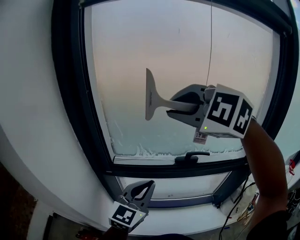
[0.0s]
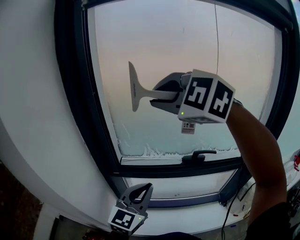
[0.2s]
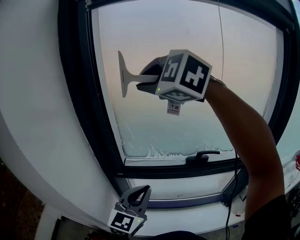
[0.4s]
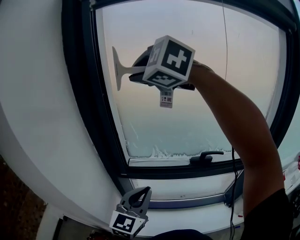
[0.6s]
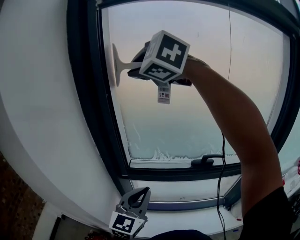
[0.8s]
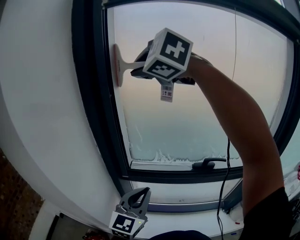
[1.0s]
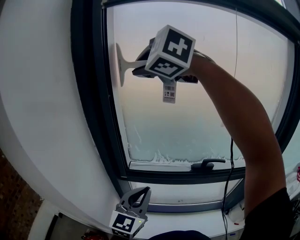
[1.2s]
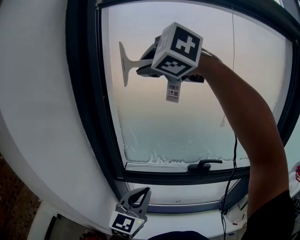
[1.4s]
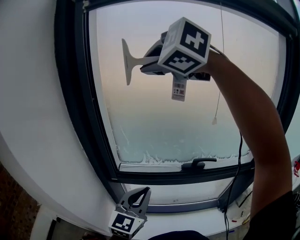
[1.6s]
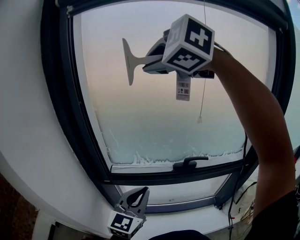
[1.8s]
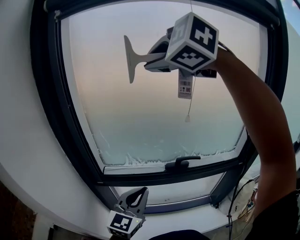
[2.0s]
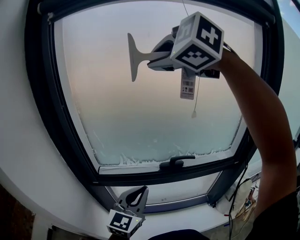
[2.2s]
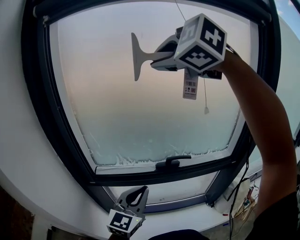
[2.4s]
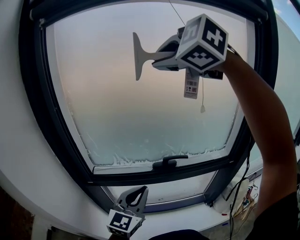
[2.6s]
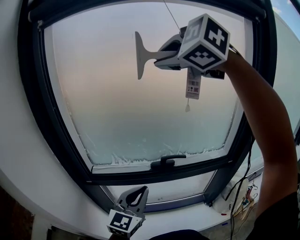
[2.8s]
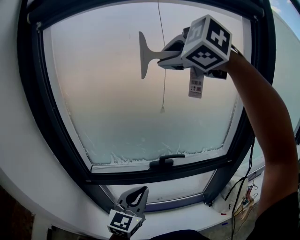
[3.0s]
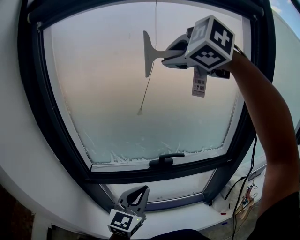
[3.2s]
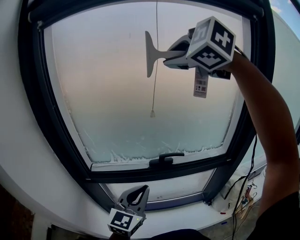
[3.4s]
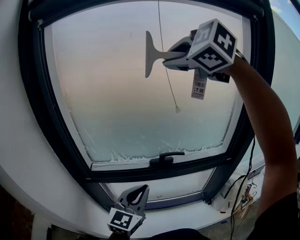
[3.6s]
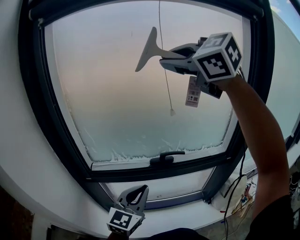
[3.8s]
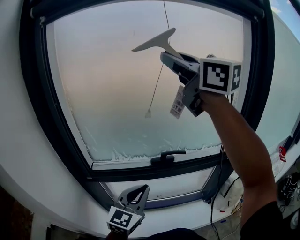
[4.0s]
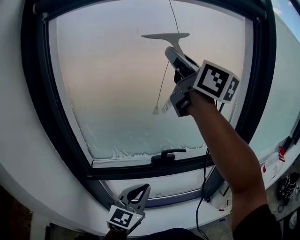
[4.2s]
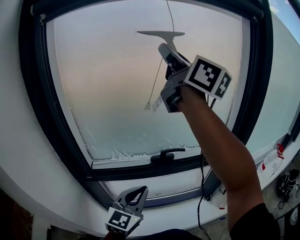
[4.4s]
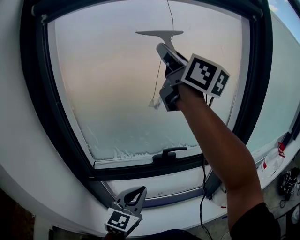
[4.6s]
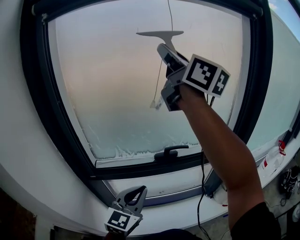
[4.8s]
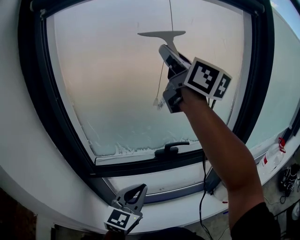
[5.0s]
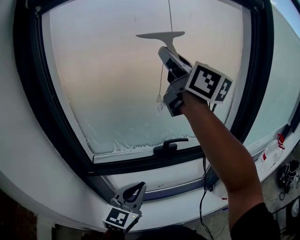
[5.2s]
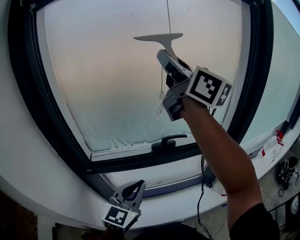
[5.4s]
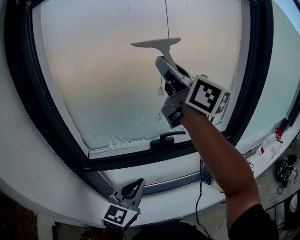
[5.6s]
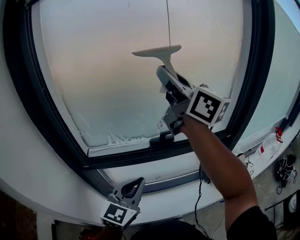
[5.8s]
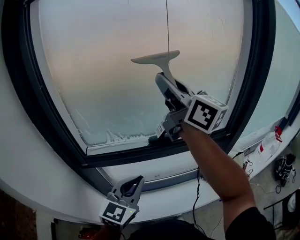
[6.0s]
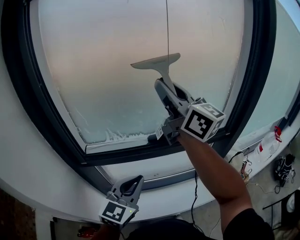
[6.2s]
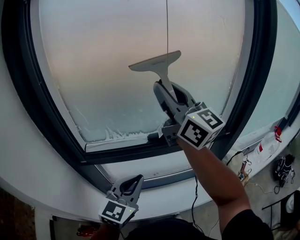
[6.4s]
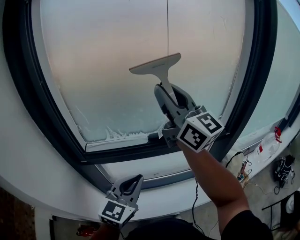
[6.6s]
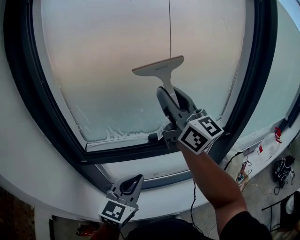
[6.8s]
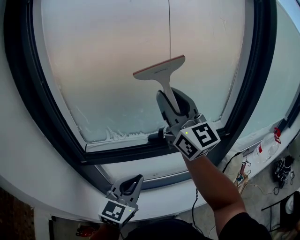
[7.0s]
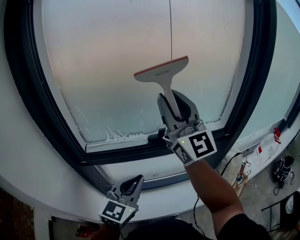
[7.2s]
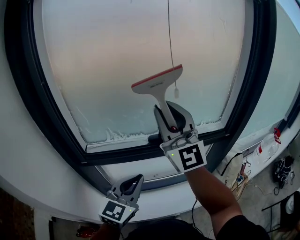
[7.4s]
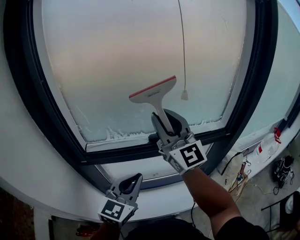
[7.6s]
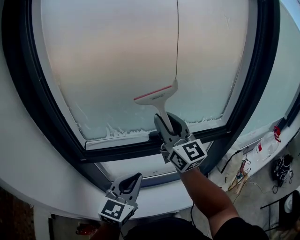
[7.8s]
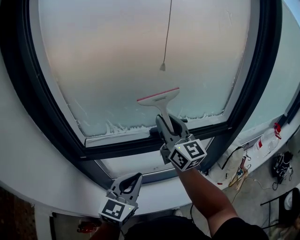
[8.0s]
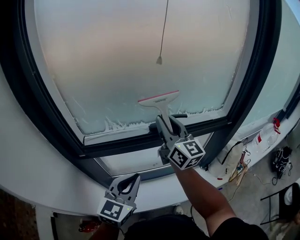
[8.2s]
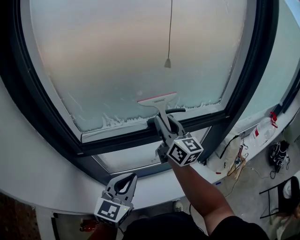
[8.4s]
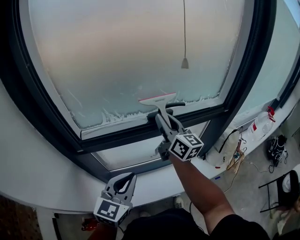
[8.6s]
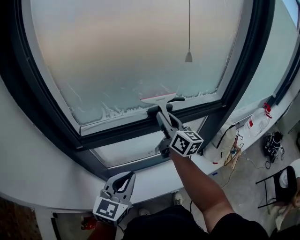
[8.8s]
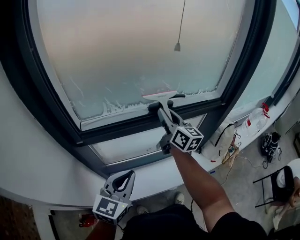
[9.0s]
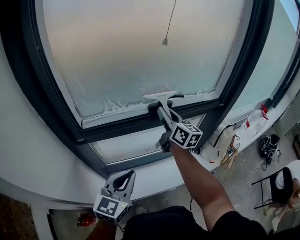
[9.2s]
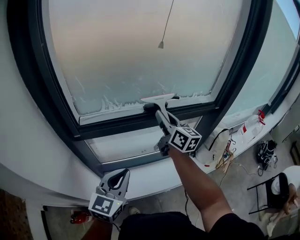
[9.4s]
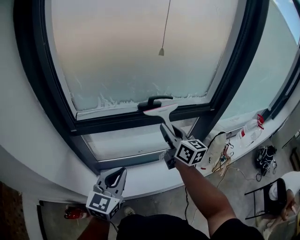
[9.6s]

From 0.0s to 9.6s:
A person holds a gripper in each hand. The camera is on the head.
From 0.0s to 1.6s: The right gripper heads upward, forward and to the left, covering some 15 cm.
From 1.6s to 3.2s: The left gripper moves to the right, about 15 cm. The right gripper goes approximately 25 cm to the right.
From 3.2s to 4.8s: The right gripper tips its fingers upward by about 60 degrees. The left gripper moves some 5 cm.
From 4.8s to 6.4s: The right gripper heads downward, covering approximately 20 cm.
From 6.4s to 8.0s: The right gripper shifts some 15 cm downward.
From 8.0s to 9.6s: The left gripper is displaced backward by some 10 cm, while the right gripper shifts roughly 15 cm downward, backward and to the right, and turns by approximately 20 degrees.

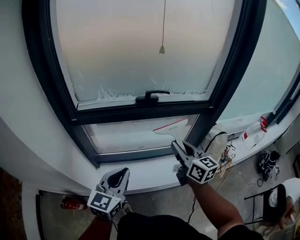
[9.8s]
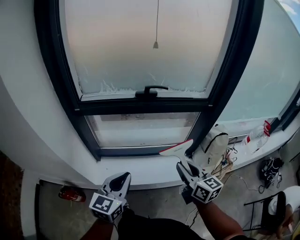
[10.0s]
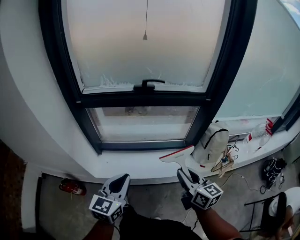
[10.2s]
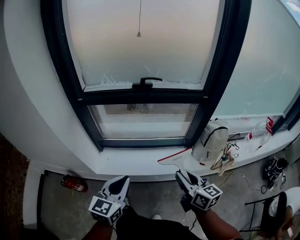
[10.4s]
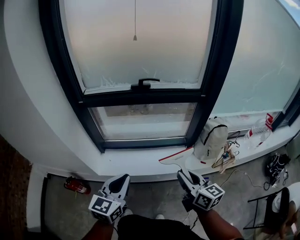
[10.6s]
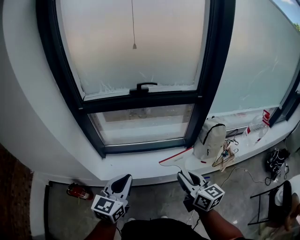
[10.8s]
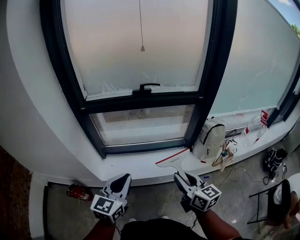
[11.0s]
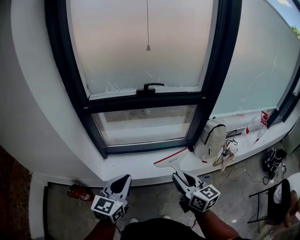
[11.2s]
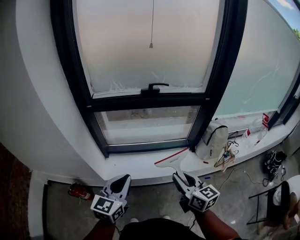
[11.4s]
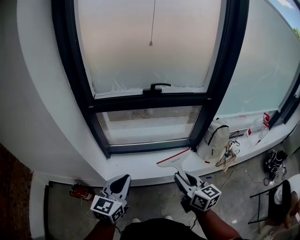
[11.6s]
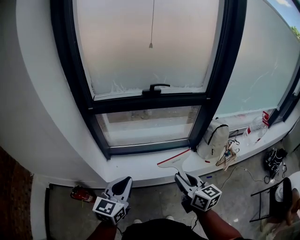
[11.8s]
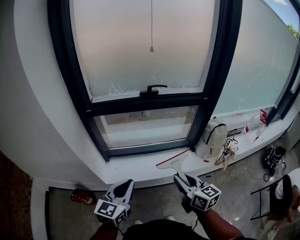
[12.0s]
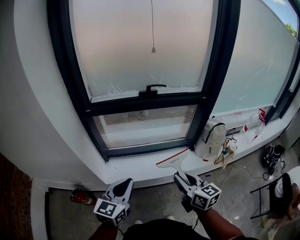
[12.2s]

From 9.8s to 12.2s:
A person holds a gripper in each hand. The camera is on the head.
From 9.8s to 11.0s: The two grippers go about 20 cm backward.
From 11.0s to 12.2s: The two grippers go approximately 5 cm to the left.

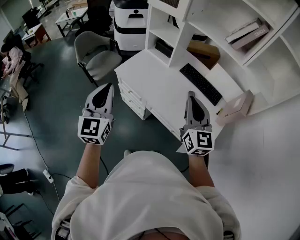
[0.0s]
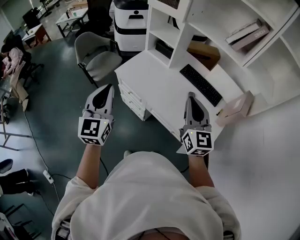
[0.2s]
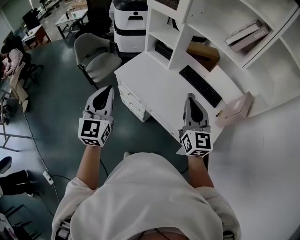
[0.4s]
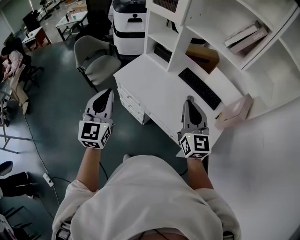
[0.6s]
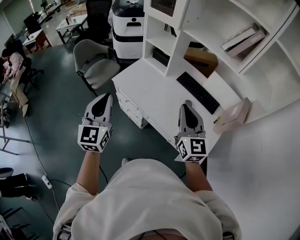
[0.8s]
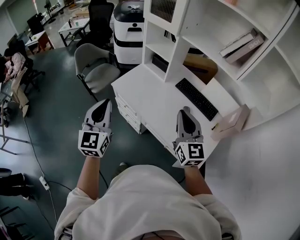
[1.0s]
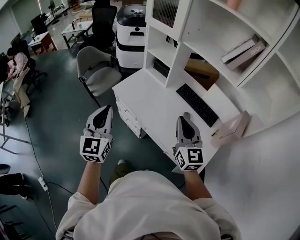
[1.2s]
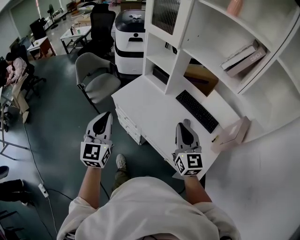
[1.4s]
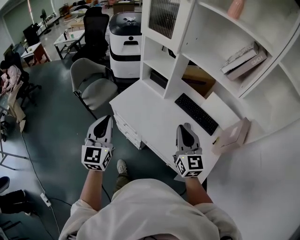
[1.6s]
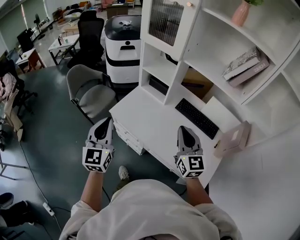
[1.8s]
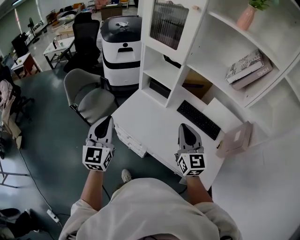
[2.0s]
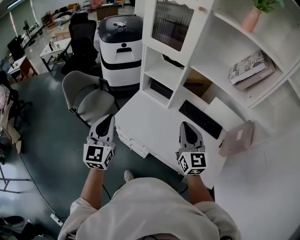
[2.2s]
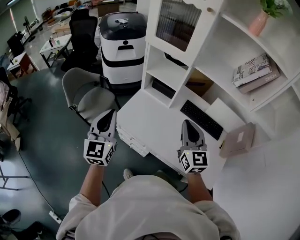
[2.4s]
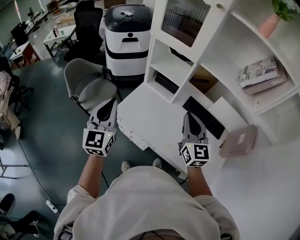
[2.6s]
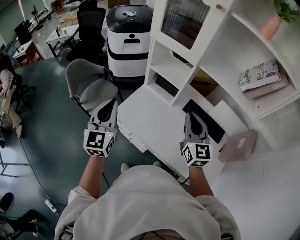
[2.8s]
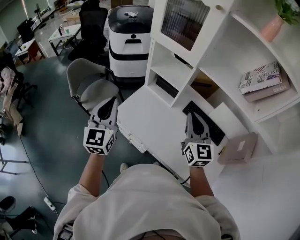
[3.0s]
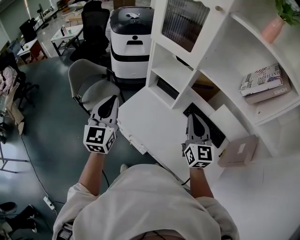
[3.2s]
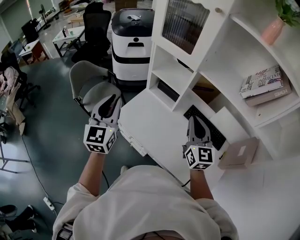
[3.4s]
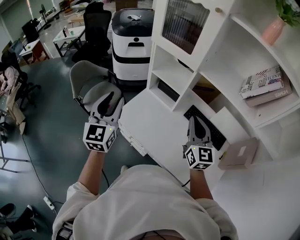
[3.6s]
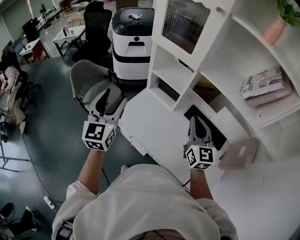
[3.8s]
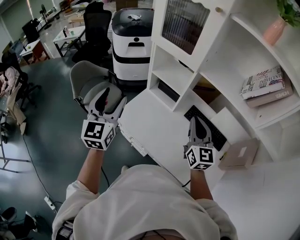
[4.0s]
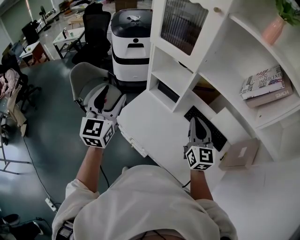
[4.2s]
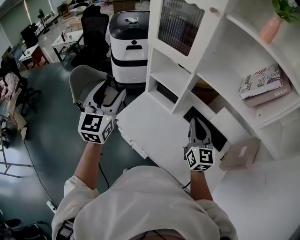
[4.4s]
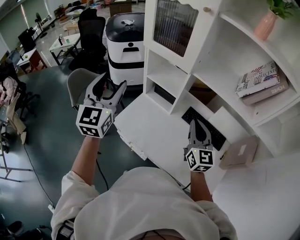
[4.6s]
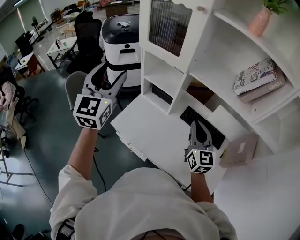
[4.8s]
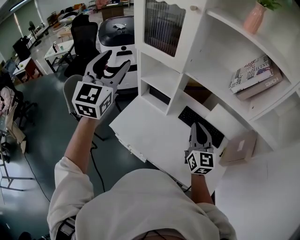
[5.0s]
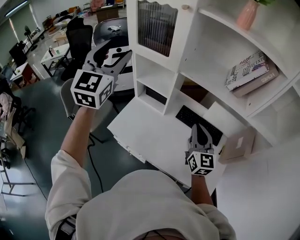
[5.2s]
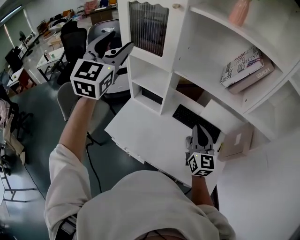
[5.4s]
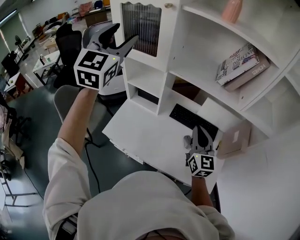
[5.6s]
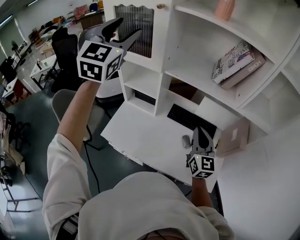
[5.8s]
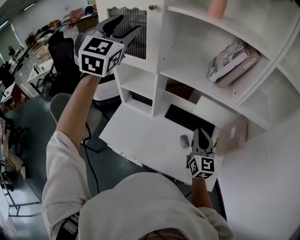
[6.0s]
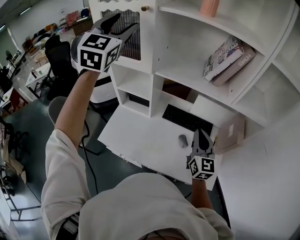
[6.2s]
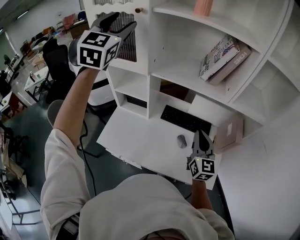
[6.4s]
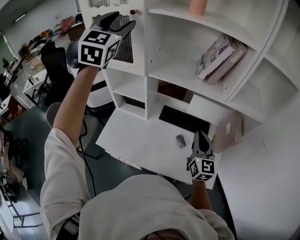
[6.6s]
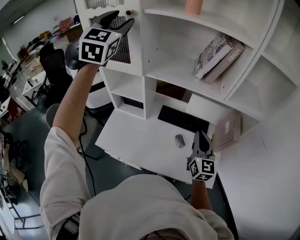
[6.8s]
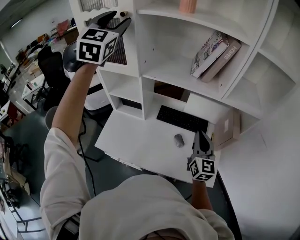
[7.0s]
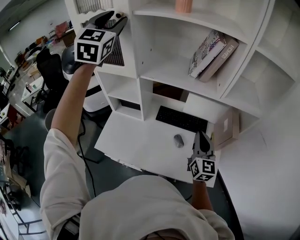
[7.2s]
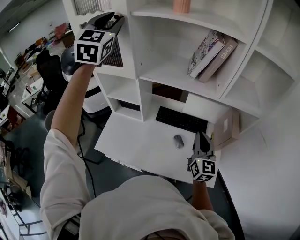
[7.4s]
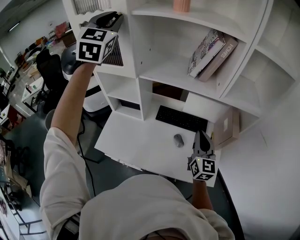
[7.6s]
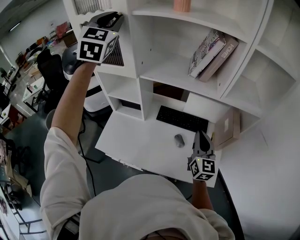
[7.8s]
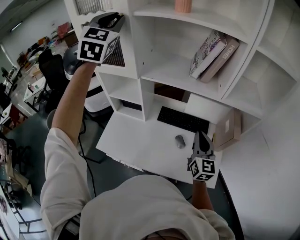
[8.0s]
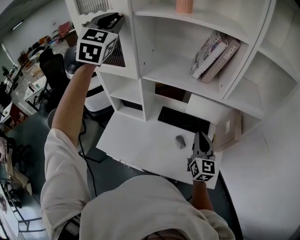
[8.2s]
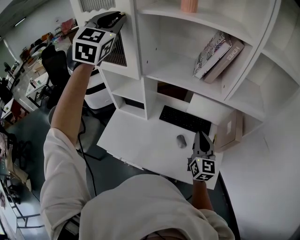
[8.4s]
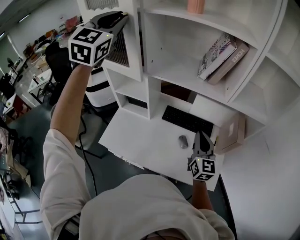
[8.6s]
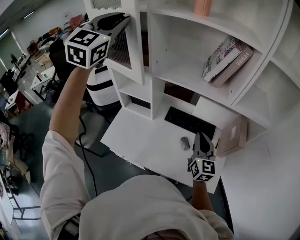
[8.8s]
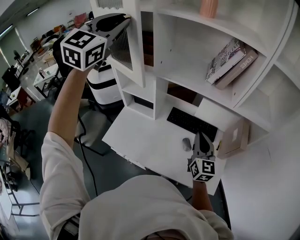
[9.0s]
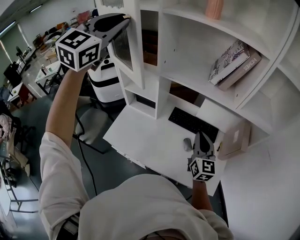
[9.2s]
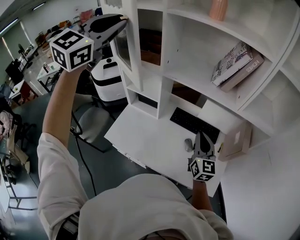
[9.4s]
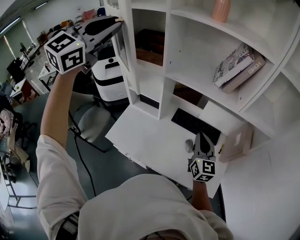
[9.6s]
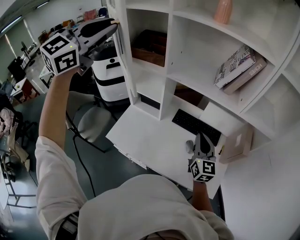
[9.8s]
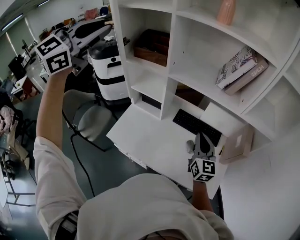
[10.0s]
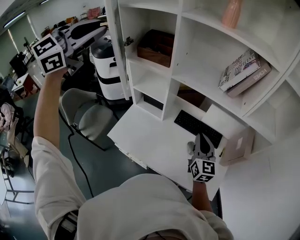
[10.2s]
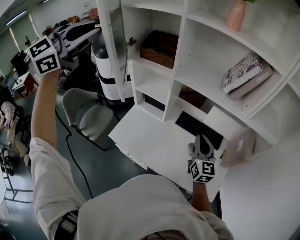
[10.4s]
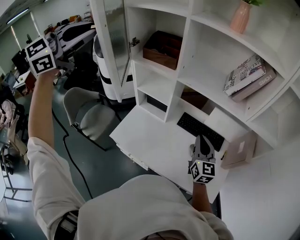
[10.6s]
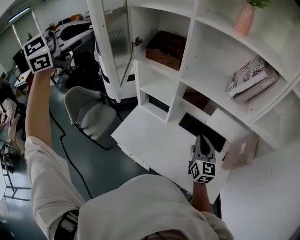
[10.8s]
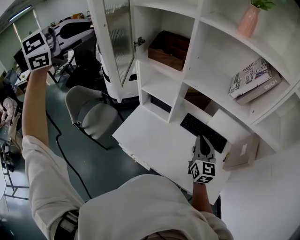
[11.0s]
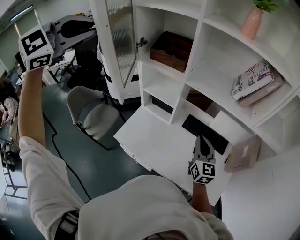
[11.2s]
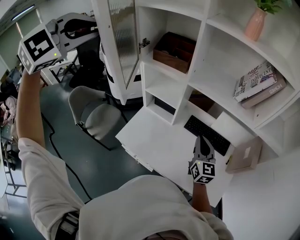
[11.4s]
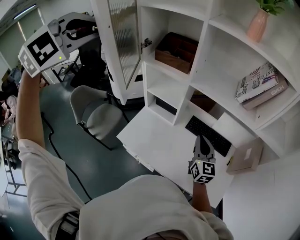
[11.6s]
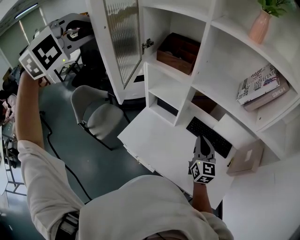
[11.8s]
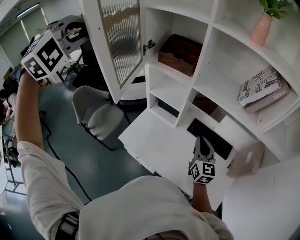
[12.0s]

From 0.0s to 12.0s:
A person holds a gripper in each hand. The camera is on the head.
From 0.0s to 1.6s: The grippers both shift forward by about 10 cm.
From 1.6s to 3.0s: The grippers both shift forward by some 20 cm.
From 3.0s to 4.4s: The left gripper travels upward and forward by some 10 cm, and opens its fingers.
From 4.4s to 6.0s: The left gripper shifts about 35 cm upward, forward and to the right, and swivels approximately 30 degrees, while the right gripper moves to the right, about 15 cm.
From 6.0s to 7.6s: The right gripper goes about 10 cm to the right. The left gripper moves forward and to the right, some 10 cm, and closes its fingers.
From 7.6s to 9.0s: The left gripper is displaced backward by about 10 cm. The right gripper is displaced to the left by about 5 cm.
From 9.0s to 10.4s: The right gripper moves to the left, some 5 cm. Meanwhile the left gripper travels backward and to the left by roughly 15 cm.
From 10.4s to 12.0s: Both grippers move to the left, some 10 cm. The left gripper turns by roughly 70 degrees.
